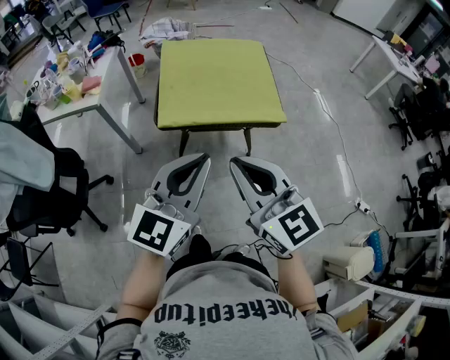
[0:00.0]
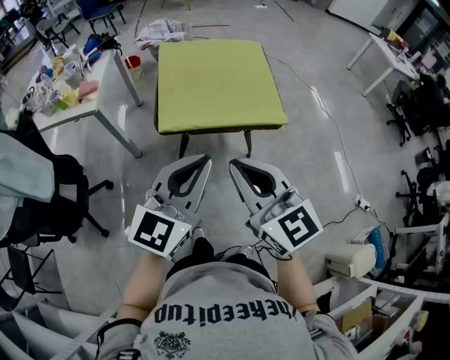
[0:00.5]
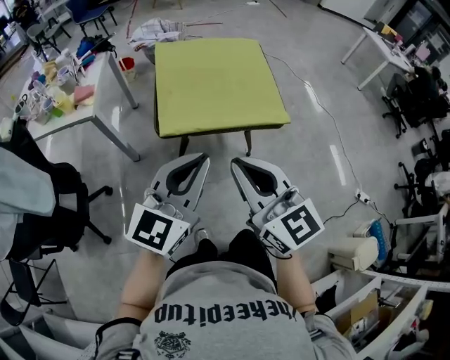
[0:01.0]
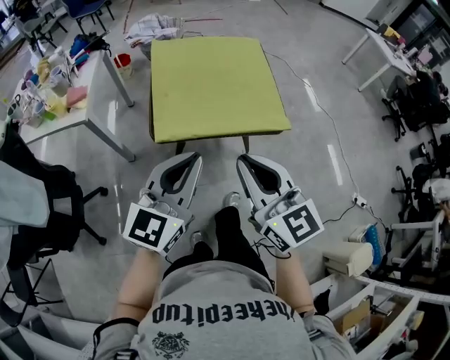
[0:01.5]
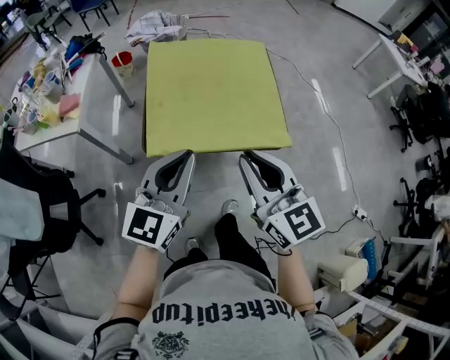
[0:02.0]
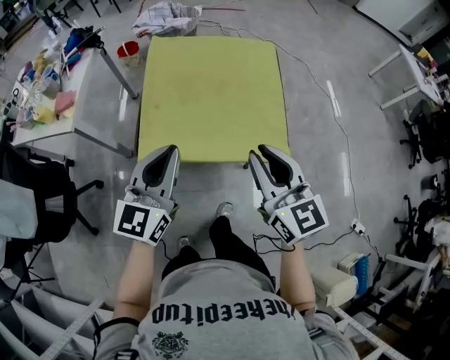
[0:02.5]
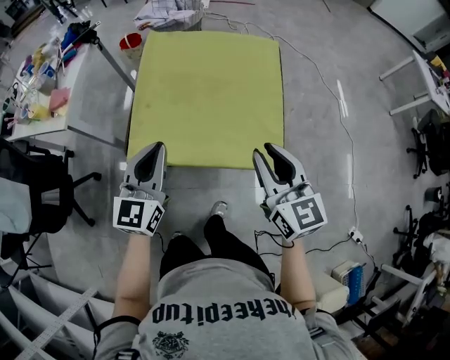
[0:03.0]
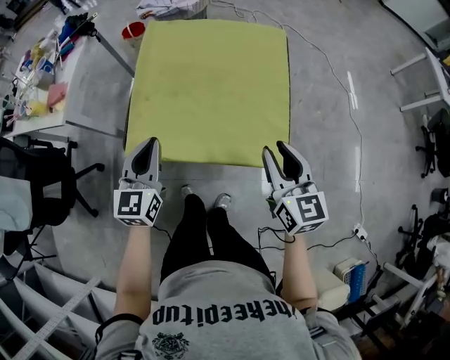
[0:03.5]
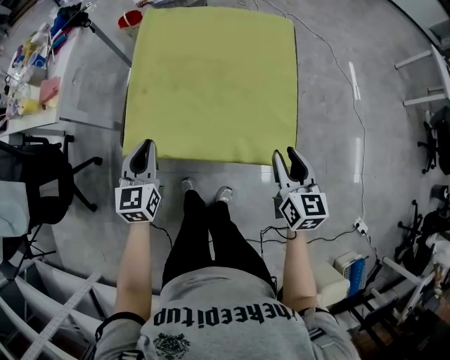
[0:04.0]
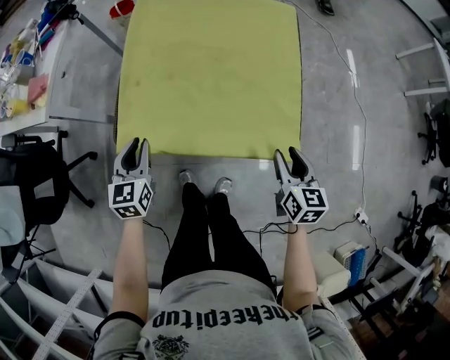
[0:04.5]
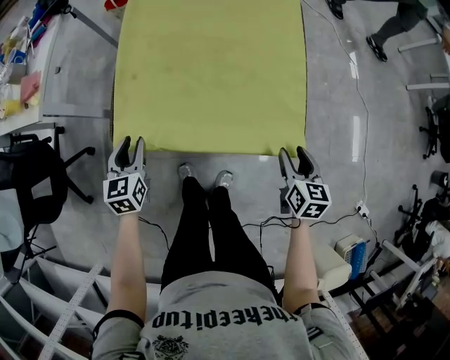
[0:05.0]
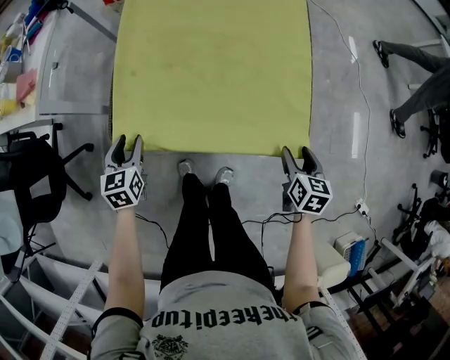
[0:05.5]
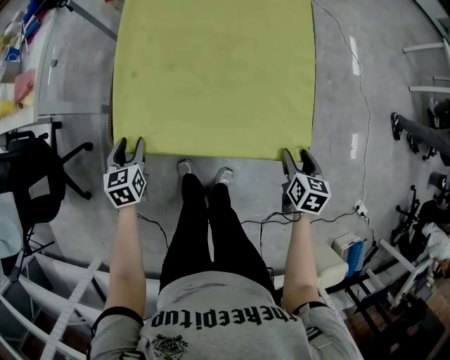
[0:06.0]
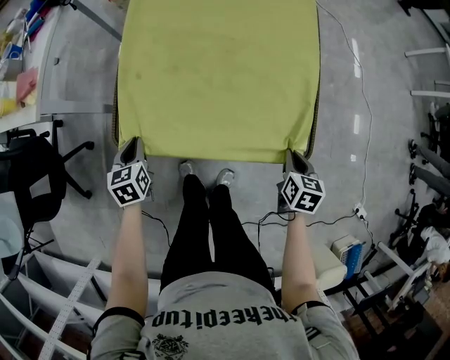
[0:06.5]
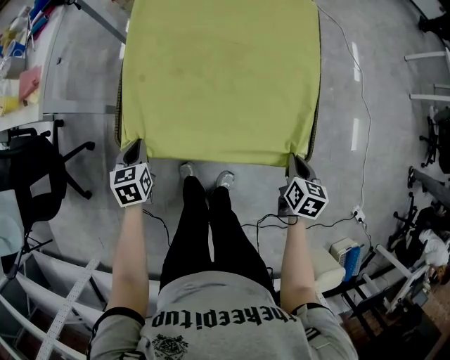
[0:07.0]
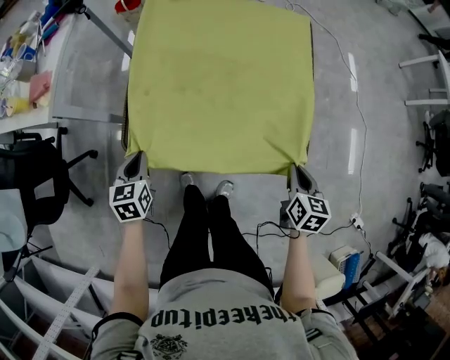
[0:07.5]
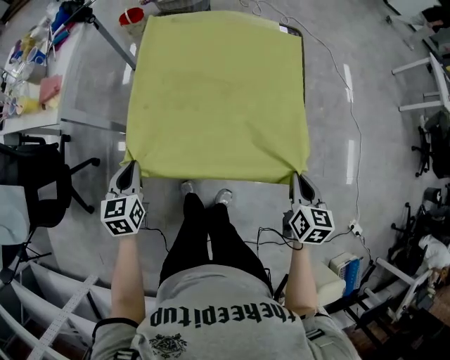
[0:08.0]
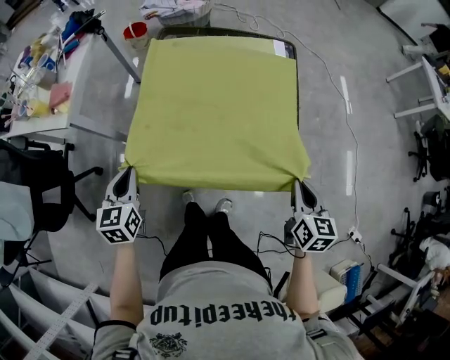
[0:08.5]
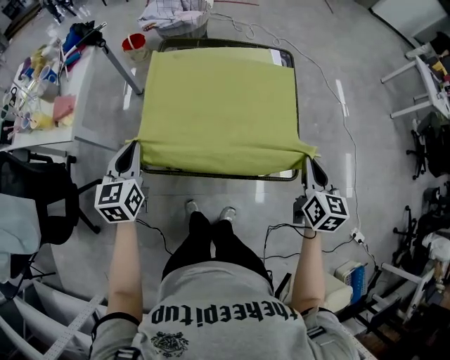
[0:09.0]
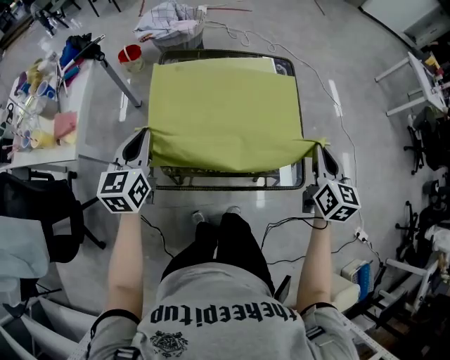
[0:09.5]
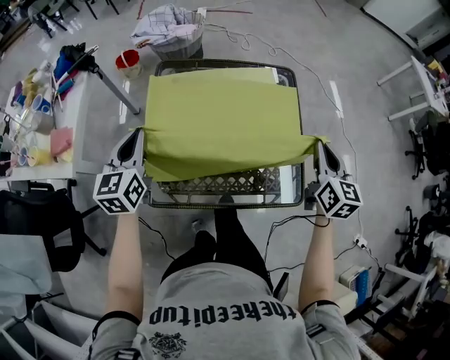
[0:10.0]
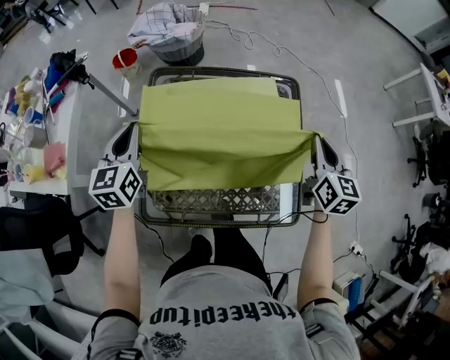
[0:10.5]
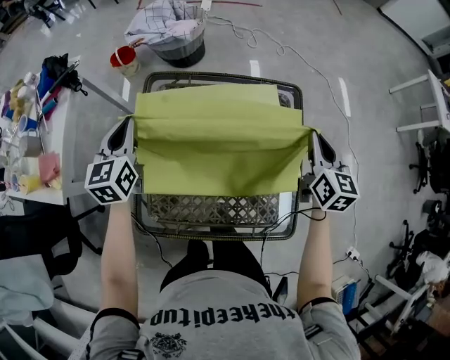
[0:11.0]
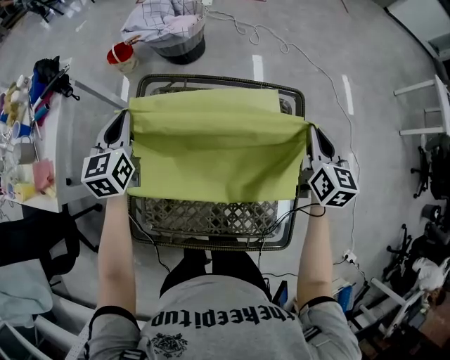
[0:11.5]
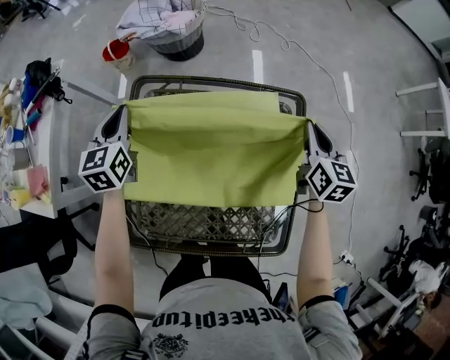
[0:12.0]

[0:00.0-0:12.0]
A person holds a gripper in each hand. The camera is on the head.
0:00.0 to 0:02.0: The two grippers go some 20 cm forward.
0:02.0 to 0:04.0: The right gripper moves to the right, downward and forward, approximately 30 cm, rotates some 20 degrees, and opens. Meanwhile the left gripper shifts approximately 25 cm downward and forward, and rotates roughly 40 degrees.
0:04.0 to 0:06.0: The left gripper moves downward and to the left, some 20 cm, rotates about 20 degrees, and opens, while the right gripper moves downward, approximately 15 cm, swivels about 30 degrees, and opens.
0:06.0 to 0:08.0: The grippers both shift upward by roughly 10 cm. The left gripper closes, while the right gripper closes up.
0:08.0 to 0:10.0: The two grippers go about 25 cm forward and upward. The left gripper turns by approximately 20 degrees.
0:10.0 to 0:12.0: The grippers both shift forward by approximately 25 cm.

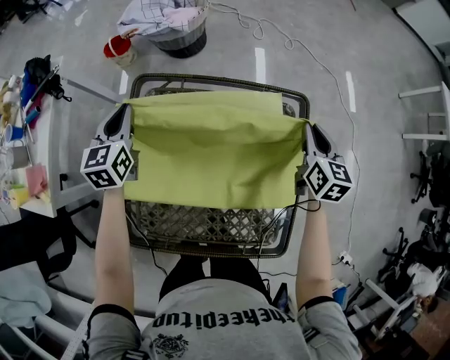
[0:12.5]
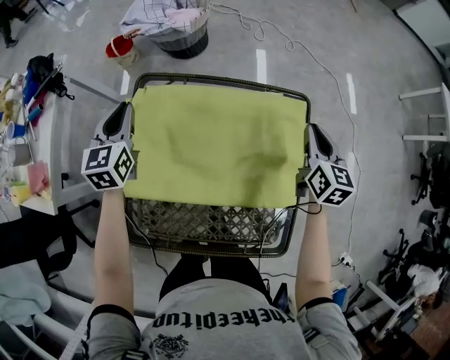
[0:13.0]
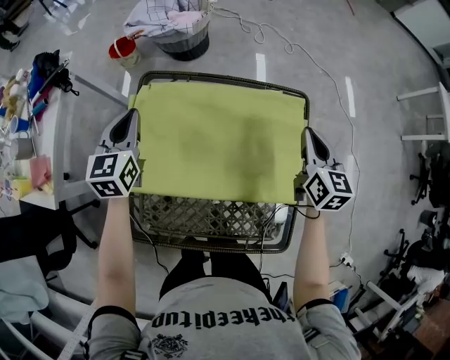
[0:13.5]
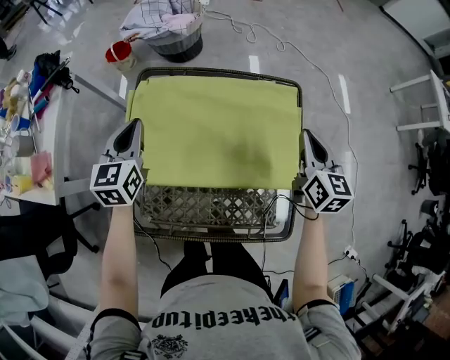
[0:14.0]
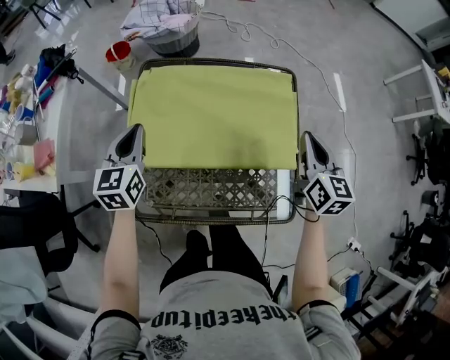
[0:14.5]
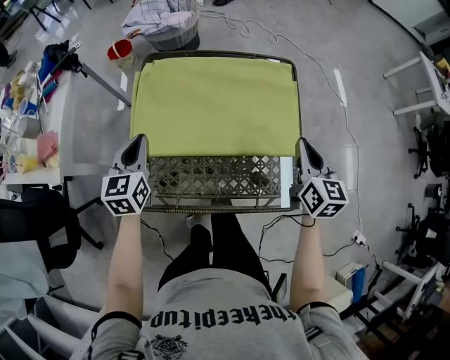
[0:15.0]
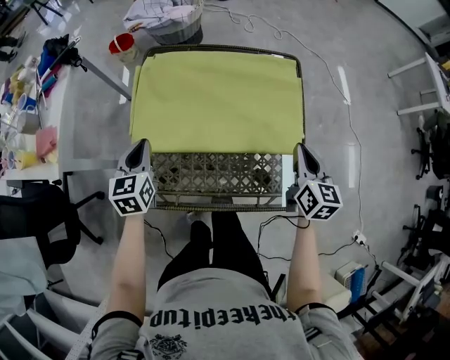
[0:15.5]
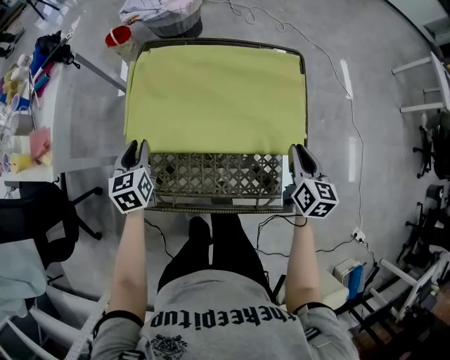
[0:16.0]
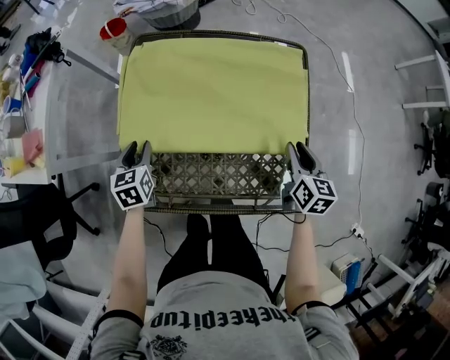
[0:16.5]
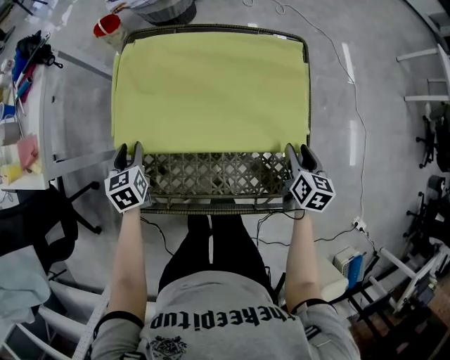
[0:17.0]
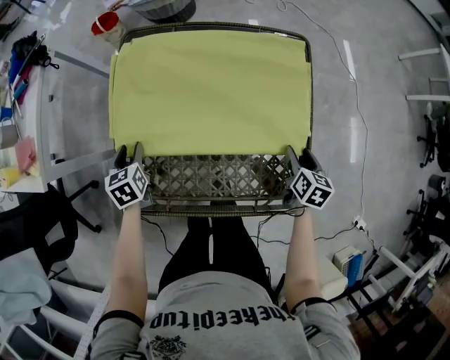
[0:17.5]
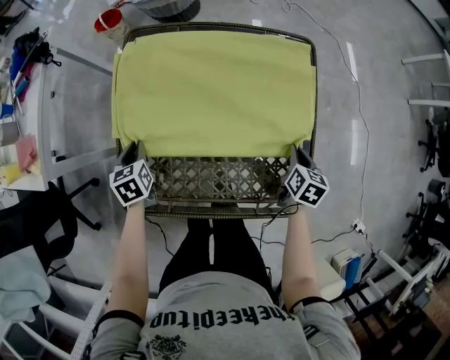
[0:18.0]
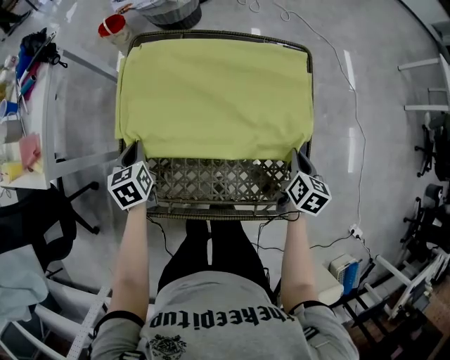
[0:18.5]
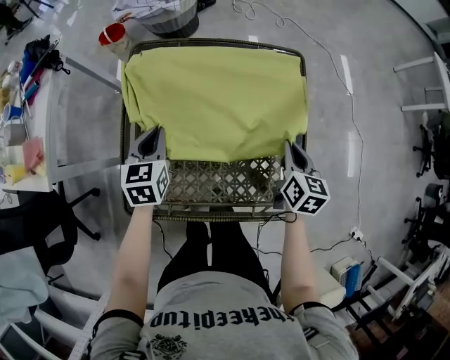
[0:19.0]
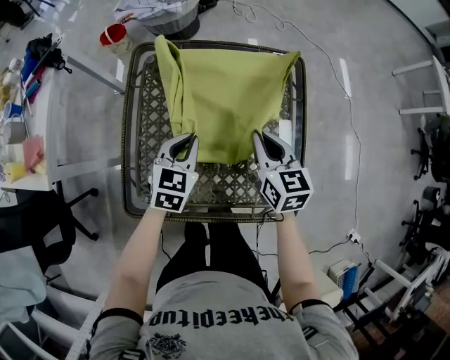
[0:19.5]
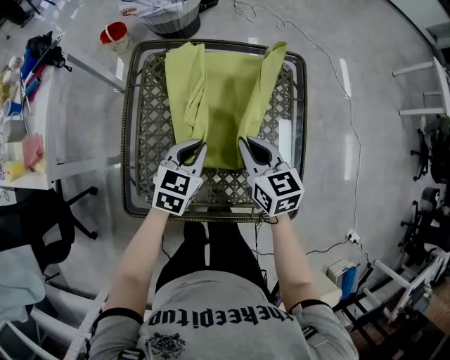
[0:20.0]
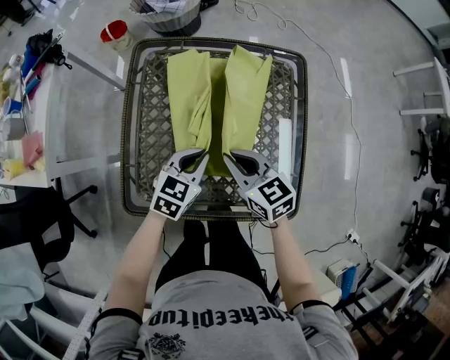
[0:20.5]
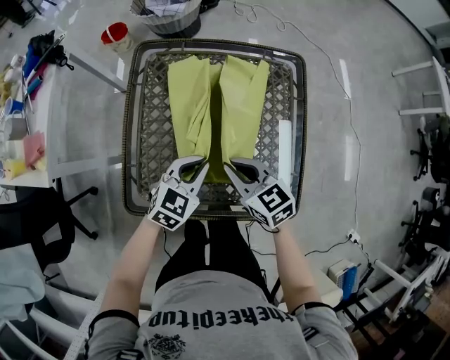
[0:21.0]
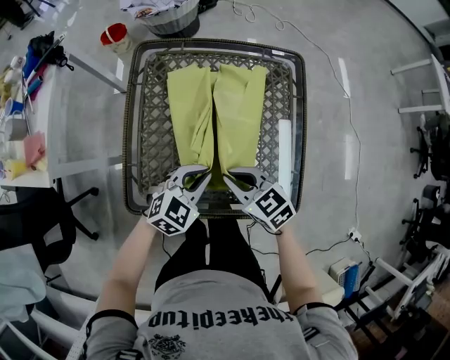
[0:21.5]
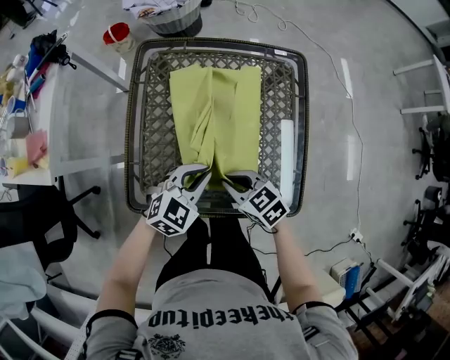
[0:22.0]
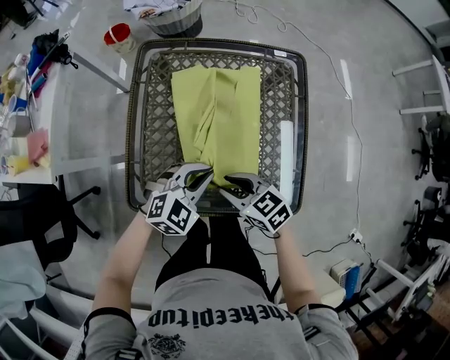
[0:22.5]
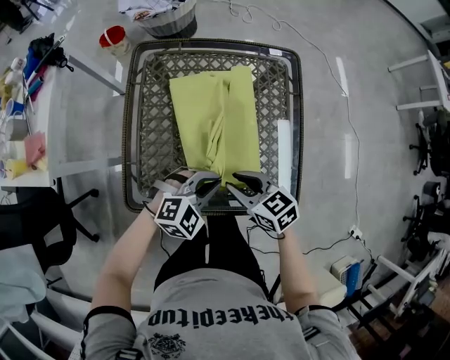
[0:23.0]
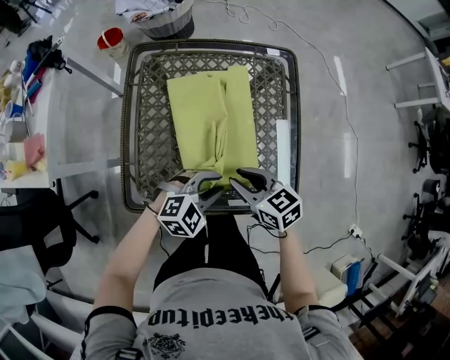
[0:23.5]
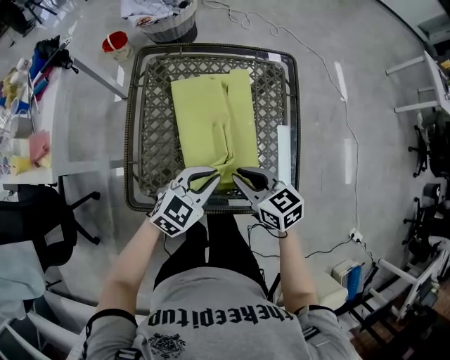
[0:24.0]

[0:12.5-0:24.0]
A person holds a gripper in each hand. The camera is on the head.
0:12.5 to 0:14.5: Both grippers travel together backward, approximately 20 cm.
0:14.5 to 0:16.5: The two grippers go some 15 cm downward. The left gripper rotates about 20 degrees, and opens; the right gripper opens up.
0:16.5 to 0:18.5: The left gripper closes up. Meanwhile the right gripper closes up.
0:18.5 to 0:20.0: The left gripper heads to the right, covering about 20 cm, and changes its angle by approximately 40 degrees. The right gripper travels to the left and upward by approximately 20 cm, and swivels roughly 40 degrees.
0:20.0 to 0:22.0: The left gripper goes roughly 10 cm backward, and rotates about 30 degrees, while the right gripper shifts approximately 15 cm backward, downward and to the left, and turns by roughly 30 degrees.
0:22.0 to 0:24.0: The right gripper heads upward, covering about 5 cm.

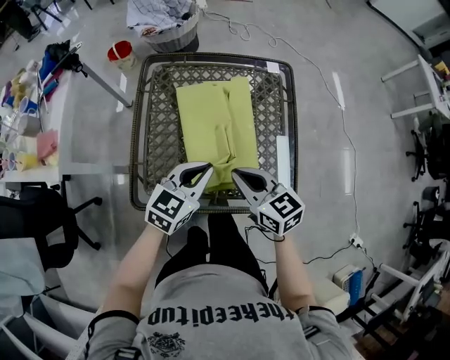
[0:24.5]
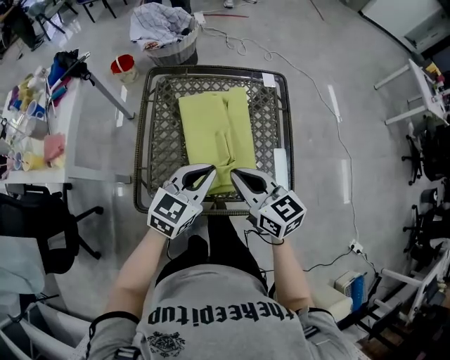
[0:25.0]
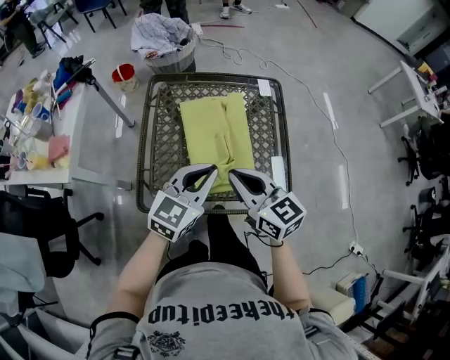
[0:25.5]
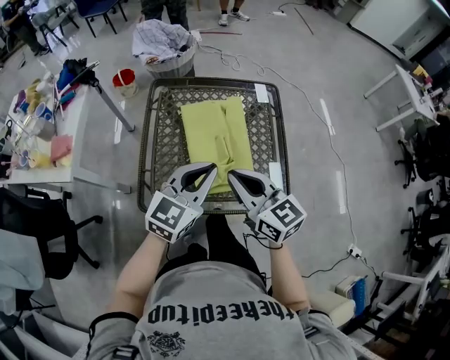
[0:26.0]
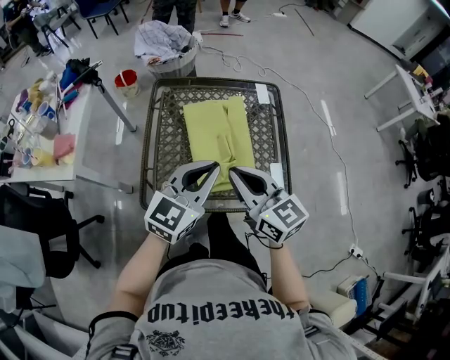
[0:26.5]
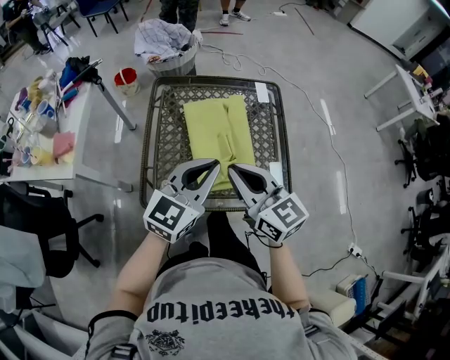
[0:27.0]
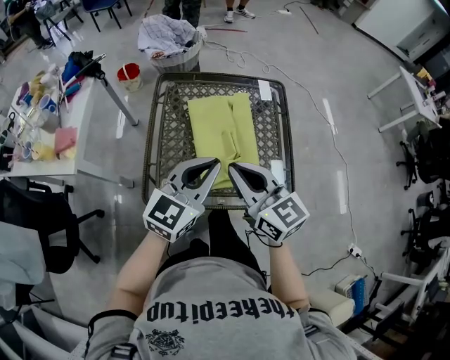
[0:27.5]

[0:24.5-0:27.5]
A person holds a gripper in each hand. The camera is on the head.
0:24.5 to 0:26.0: Both grippers move upward, some 10 cm.
0:26.0 to 0:27.5: The grippers move only a little.
